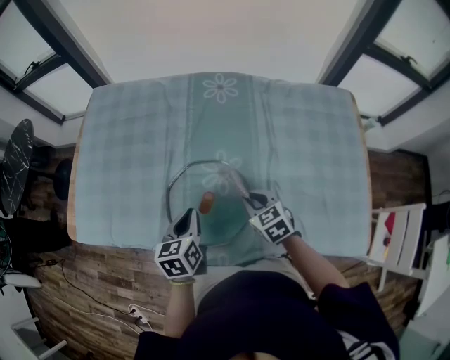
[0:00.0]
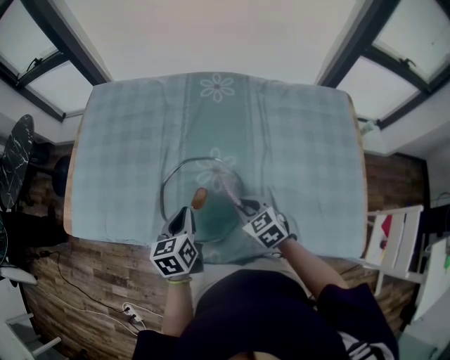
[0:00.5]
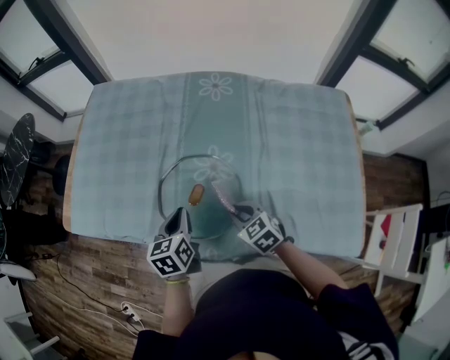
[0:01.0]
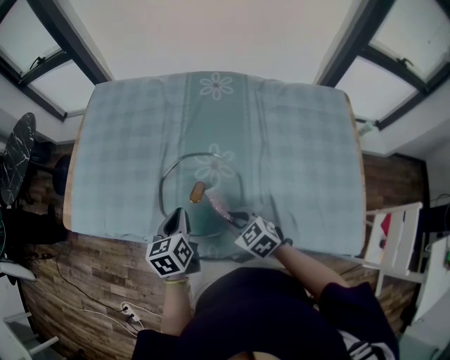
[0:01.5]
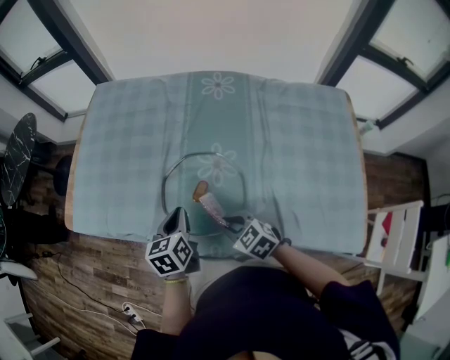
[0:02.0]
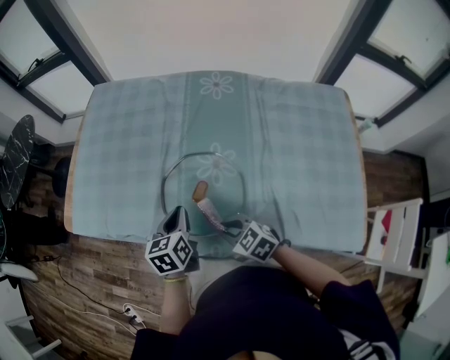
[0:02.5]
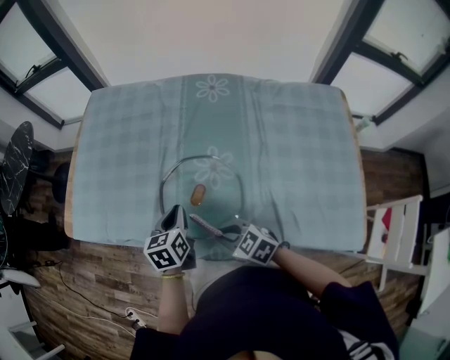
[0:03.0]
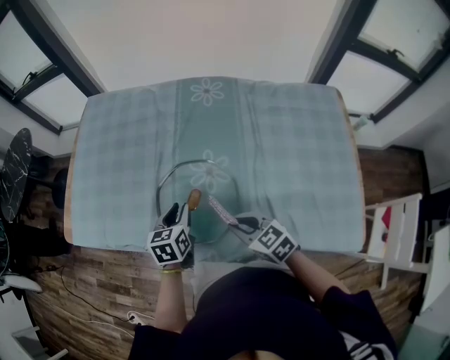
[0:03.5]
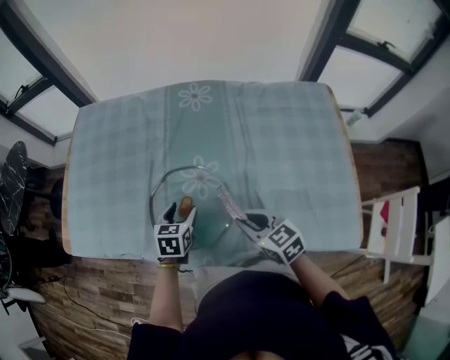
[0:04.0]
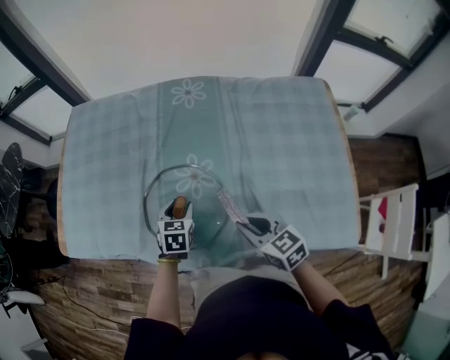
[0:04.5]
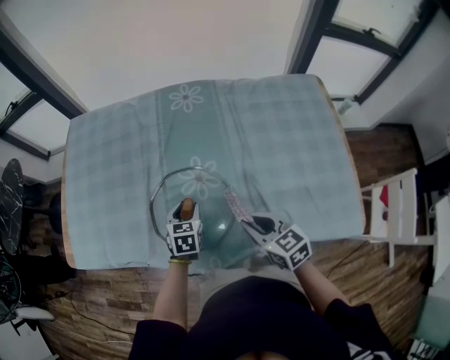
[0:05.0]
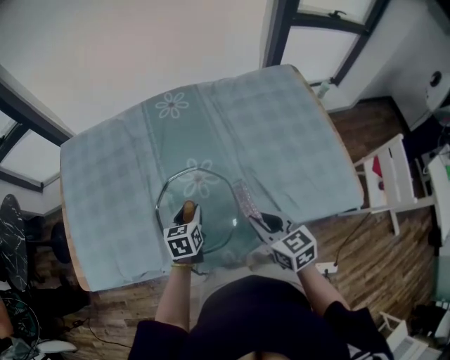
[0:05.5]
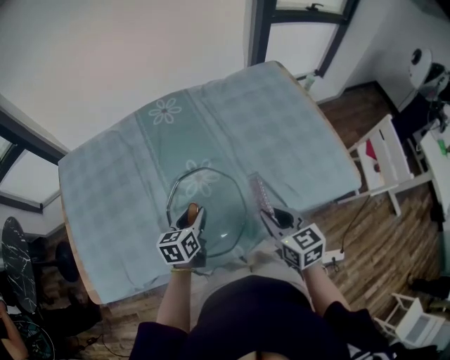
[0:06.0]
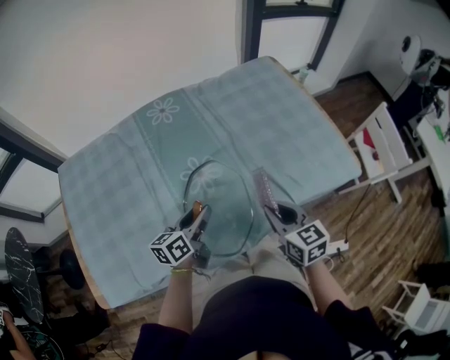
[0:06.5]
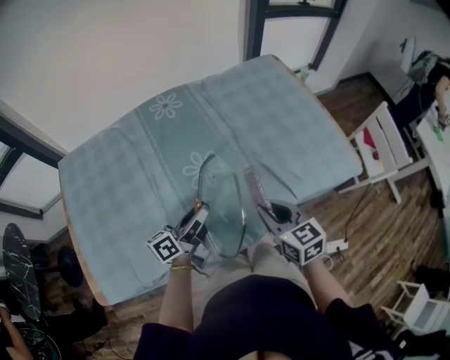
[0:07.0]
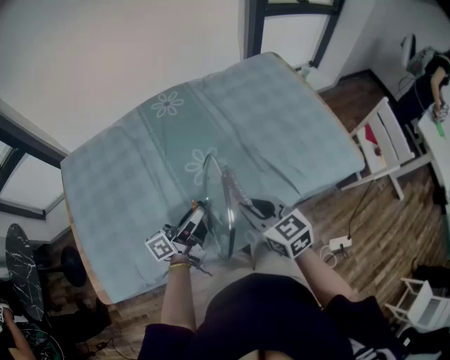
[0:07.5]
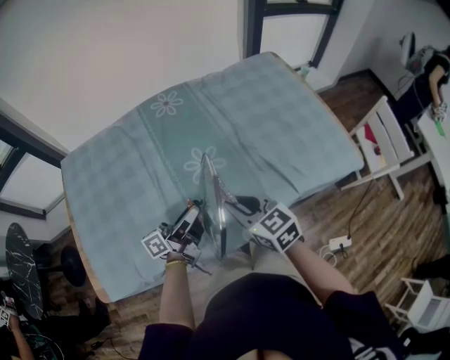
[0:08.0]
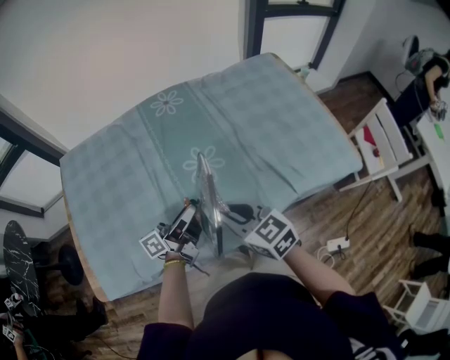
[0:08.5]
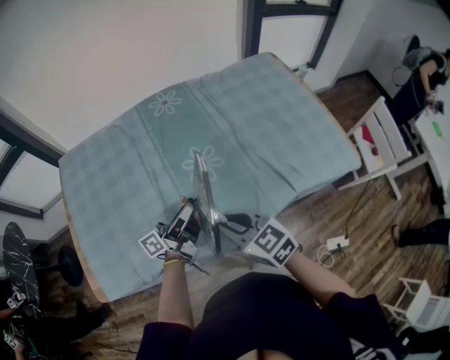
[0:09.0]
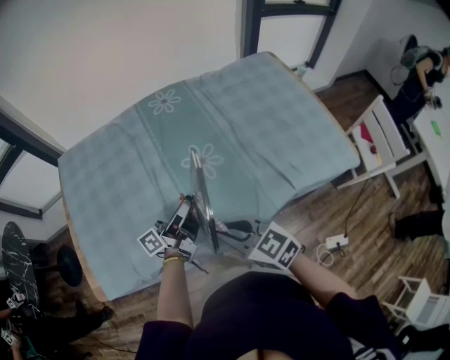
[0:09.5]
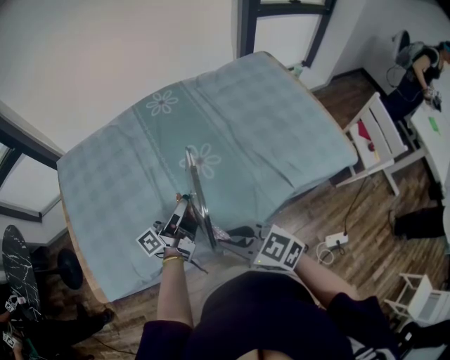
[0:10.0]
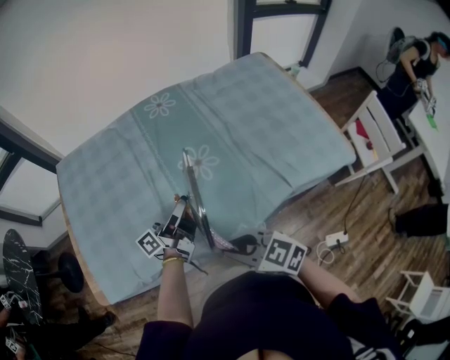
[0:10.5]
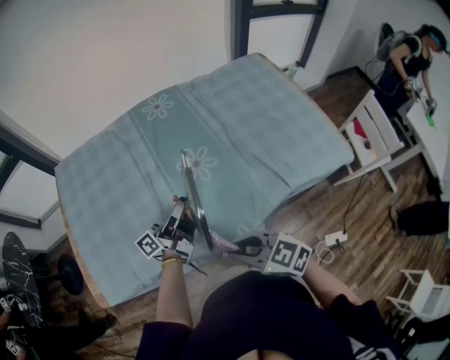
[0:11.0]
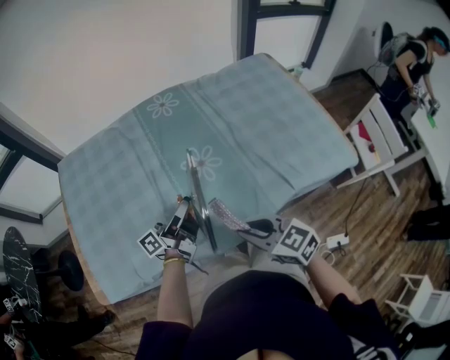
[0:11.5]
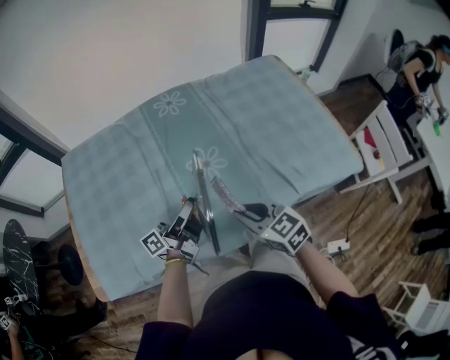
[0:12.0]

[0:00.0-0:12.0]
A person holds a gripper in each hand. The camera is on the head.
0:00.0 to 0:02.0: The right gripper travels to the left and backward by some 15 cm, and swivels roughly 20 degrees.
0:02.0 to 0:04.0: The left gripper shifts approximately 10 cm to the right and downward, changes its angle by about 30 degrees, and opens. The right gripper travels to the right and upward by about 10 cm, and turns by about 30 degrees.
0:04.0 to 0:06.0: The left gripper rotates some 20 degrees. Meanwhile the right gripper moves approximately 10 cm, and rotates some 40 degrees.
0:06.0 to 0:08.0: The left gripper goes approximately 5 cm upward, and points its fingers about 50 degrees further upward, while the right gripper moves to the left, about 15 cm.
0:08.0 to 0:10.0: The right gripper moves backward, some 10 cm, and swivels approximately 20 degrees.
0:10.0 to 0:12.0: The right gripper goes about 10 cm forward and to the right.

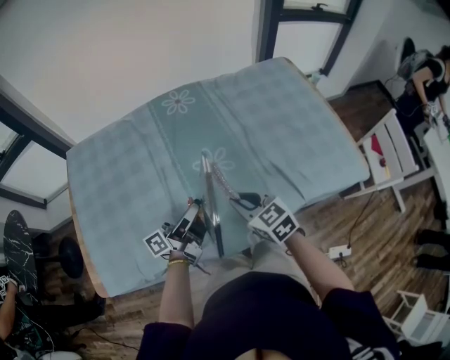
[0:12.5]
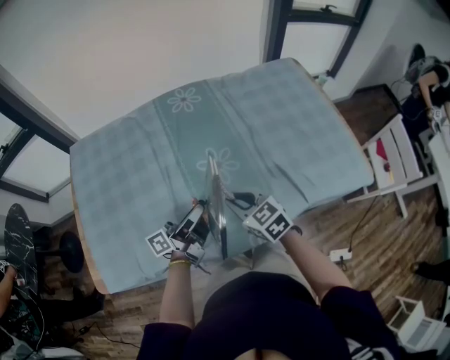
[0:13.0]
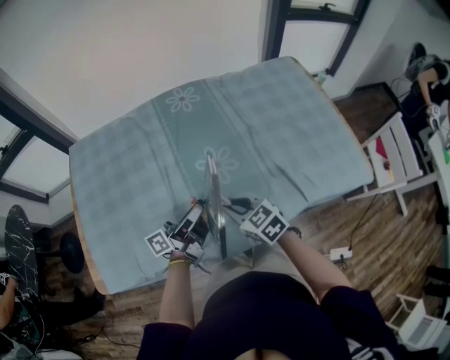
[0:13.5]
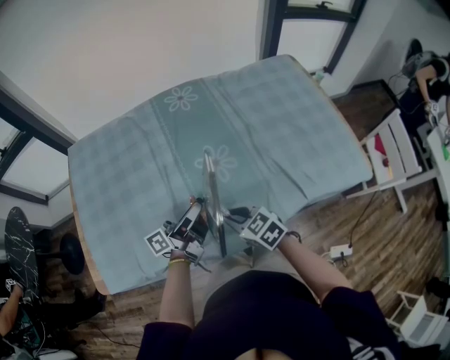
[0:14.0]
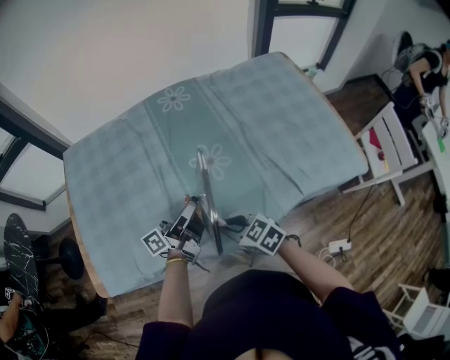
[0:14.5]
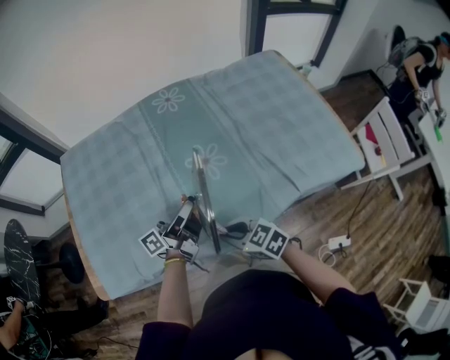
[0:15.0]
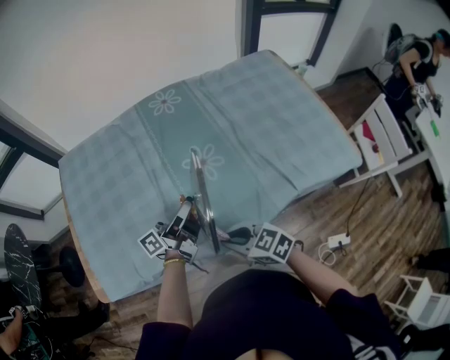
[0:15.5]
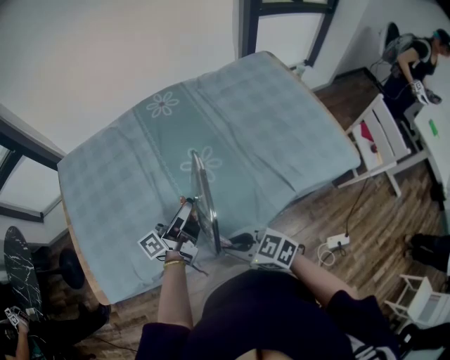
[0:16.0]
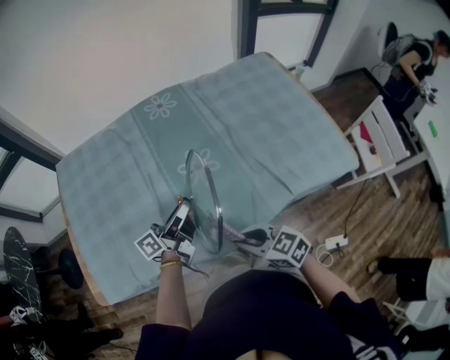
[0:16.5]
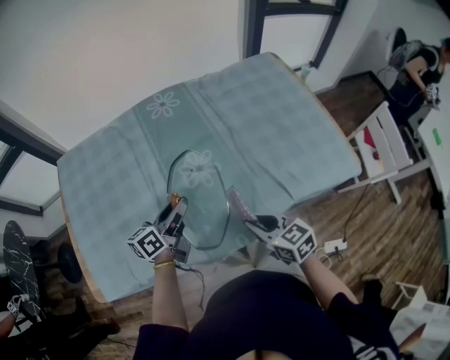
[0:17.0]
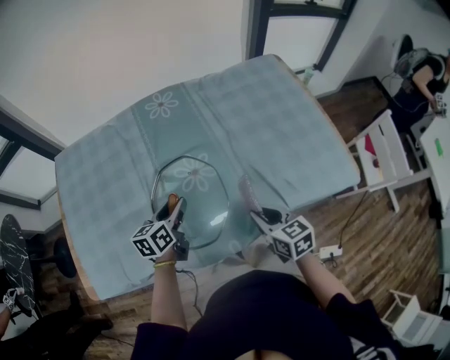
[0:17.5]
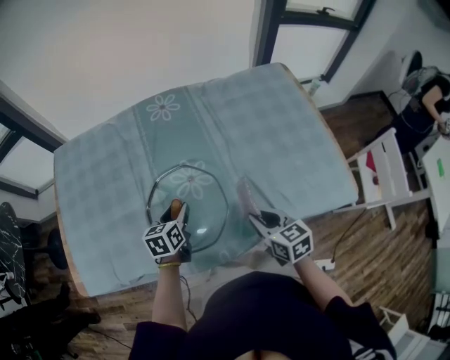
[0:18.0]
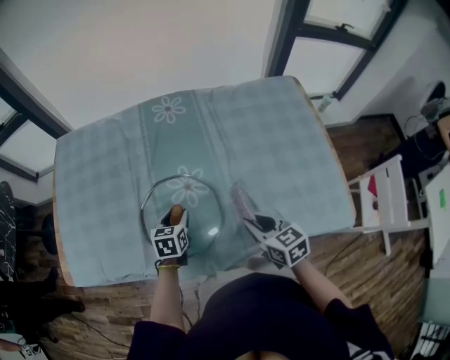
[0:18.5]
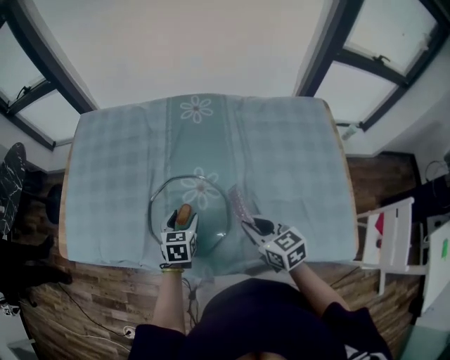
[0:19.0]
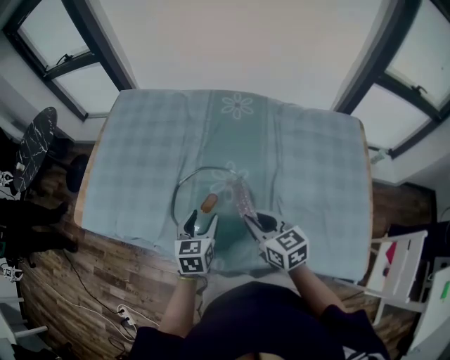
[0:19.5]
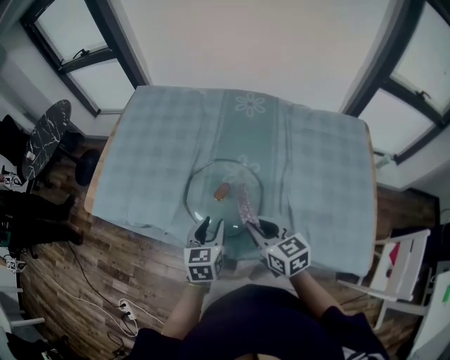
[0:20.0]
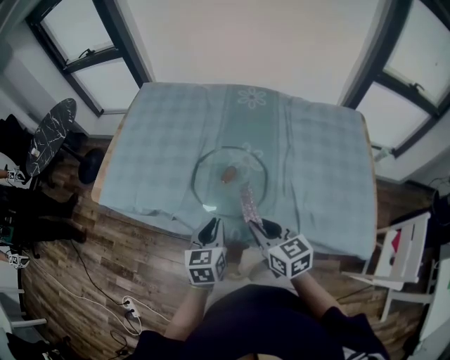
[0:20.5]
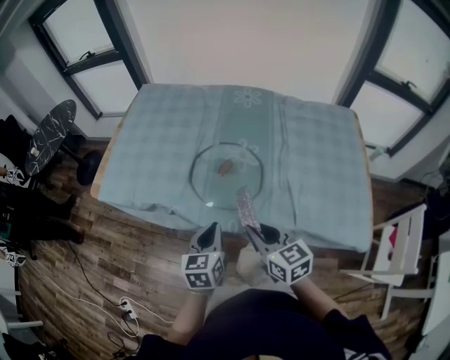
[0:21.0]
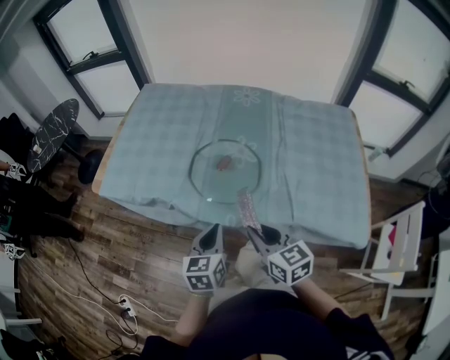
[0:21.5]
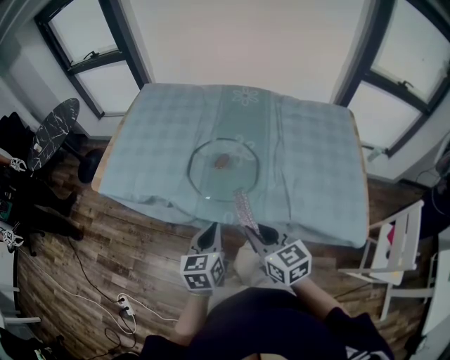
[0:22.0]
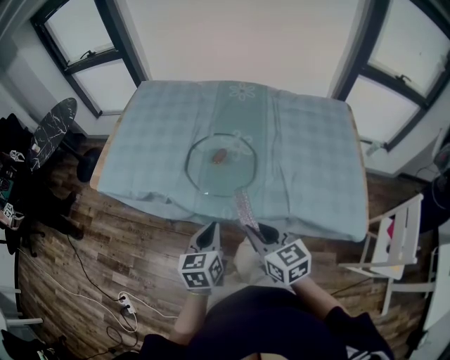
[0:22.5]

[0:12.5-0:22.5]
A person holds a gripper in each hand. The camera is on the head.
0:12.5 to 0:14.5: The right gripper heads backward, to the left and downward, covering approximately 10 cm.
0:14.5 to 0:16.5: The right gripper travels backward and to the right by about 10 cm.
0:16.5 to 0:18.5: The right gripper travels to the right and forward by about 20 cm. The left gripper shifts roughly 15 cm downward, and points its fingers approximately 50 degrees further downward.
0:18.5 to 0:20.5: The right gripper heads to the left, upward and backward, covering approximately 15 cm, while the left gripper goes roughly 25 cm backward, upward and to the left, rotates some 30 degrees, and closes up.
0:20.5 to 0:22.5: Both grippers travel together backward, some 10 cm.

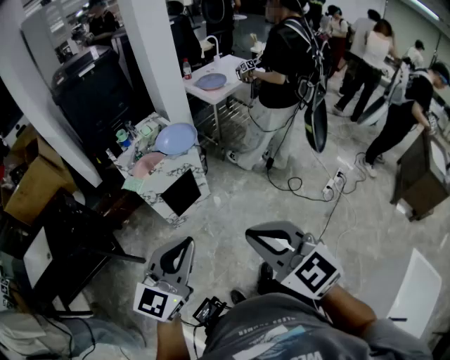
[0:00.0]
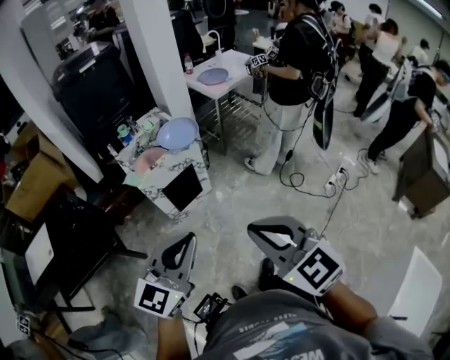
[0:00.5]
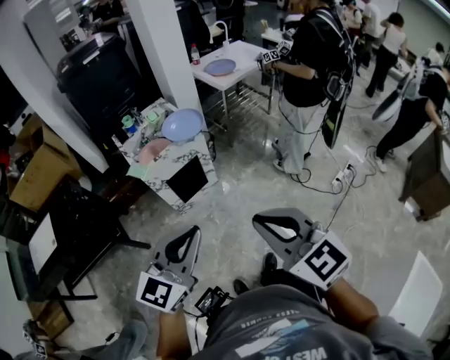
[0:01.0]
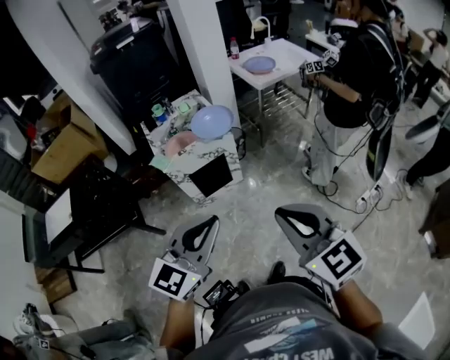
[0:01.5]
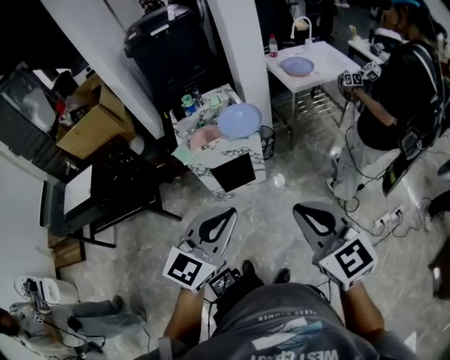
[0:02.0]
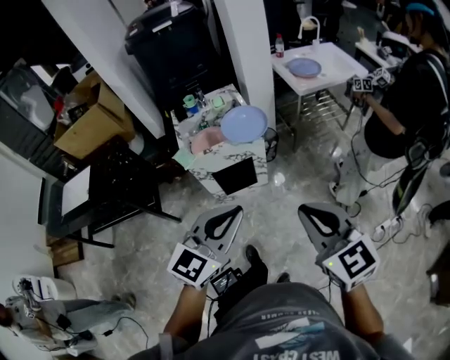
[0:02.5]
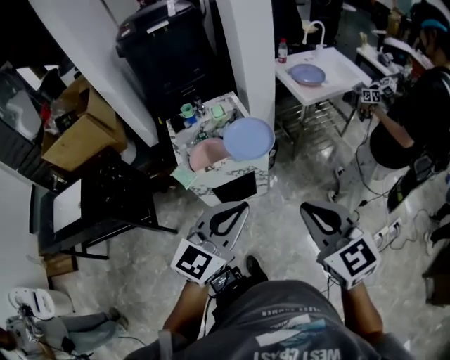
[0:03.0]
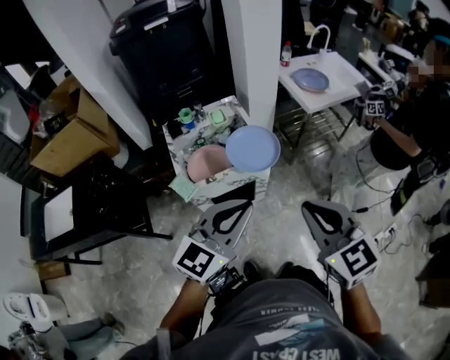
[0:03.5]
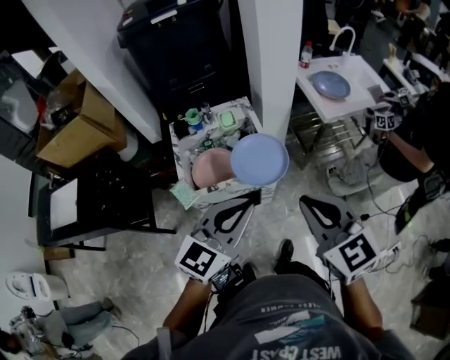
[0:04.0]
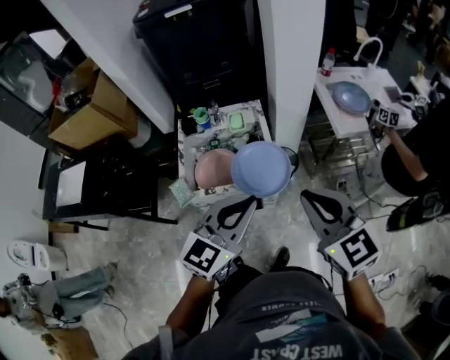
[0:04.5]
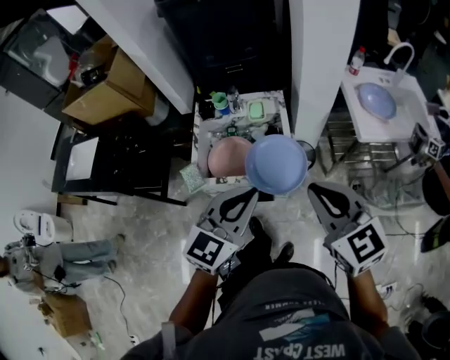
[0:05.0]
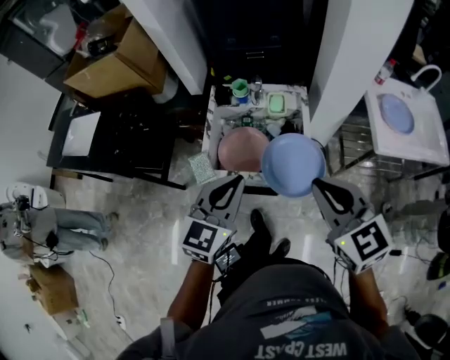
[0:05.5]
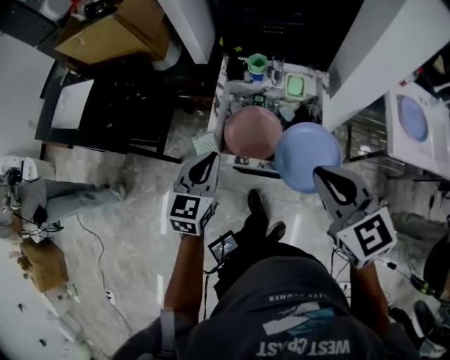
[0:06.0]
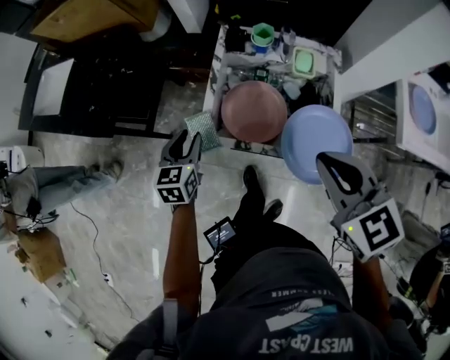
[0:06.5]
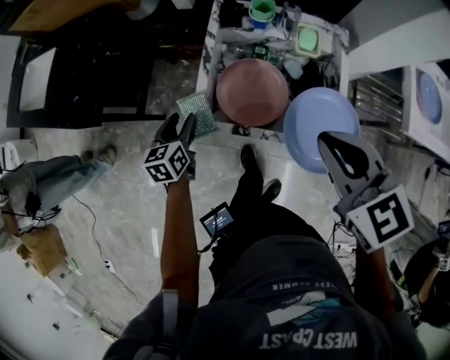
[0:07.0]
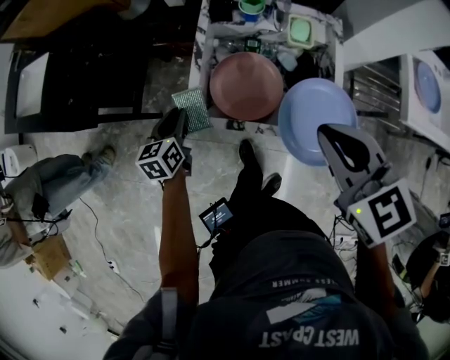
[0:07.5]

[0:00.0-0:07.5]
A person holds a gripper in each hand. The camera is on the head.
0:00.0 to 0:02.0: The two grippers go some 15 cm forward and to the right.
0:02.0 to 0:04.0: The grippers both shift forward by about 35 cm.
0:04.0 to 0:05.5: The right gripper moves approximately 15 cm, and swivels approximately 20 degrees; the left gripper moves roughly 15 cm, and swivels some 30 degrees.
0:05.5 to 0:07.5: The right gripper shifts approximately 15 cm forward, downward and to the left, while the left gripper goes about 35 cm downward, to the left and forward, rotates some 40 degrees, and opens and closes again.
